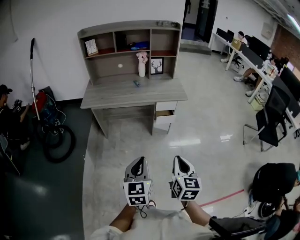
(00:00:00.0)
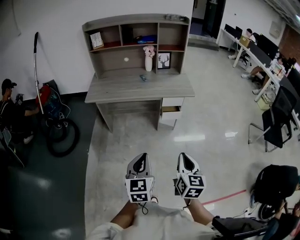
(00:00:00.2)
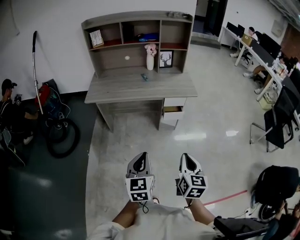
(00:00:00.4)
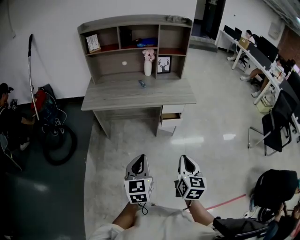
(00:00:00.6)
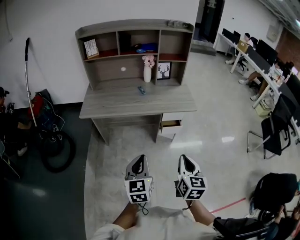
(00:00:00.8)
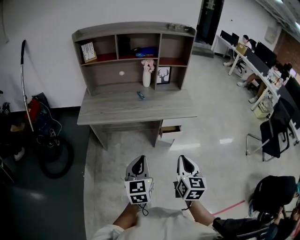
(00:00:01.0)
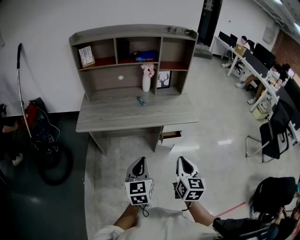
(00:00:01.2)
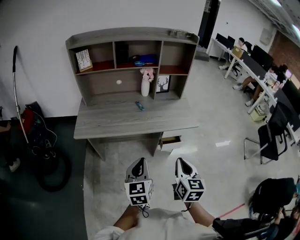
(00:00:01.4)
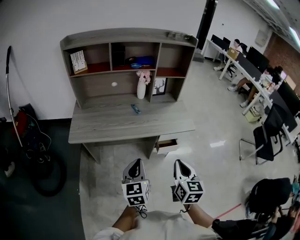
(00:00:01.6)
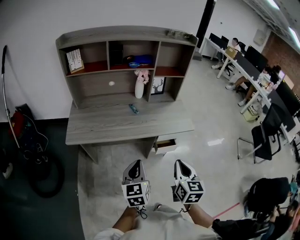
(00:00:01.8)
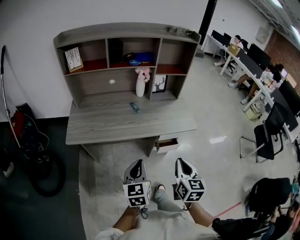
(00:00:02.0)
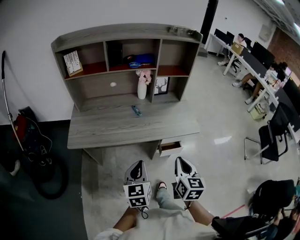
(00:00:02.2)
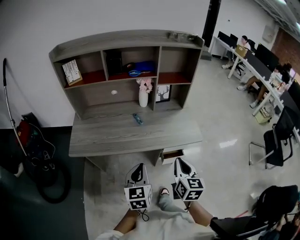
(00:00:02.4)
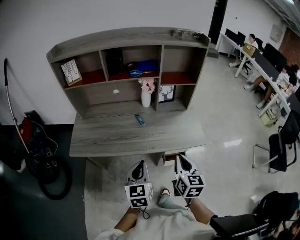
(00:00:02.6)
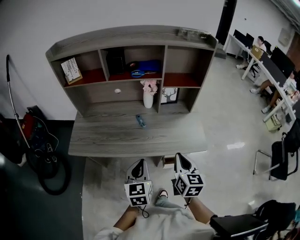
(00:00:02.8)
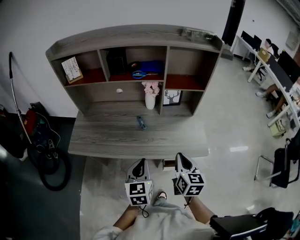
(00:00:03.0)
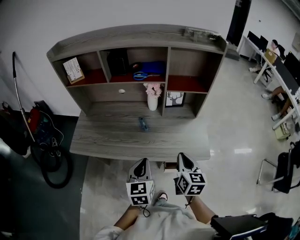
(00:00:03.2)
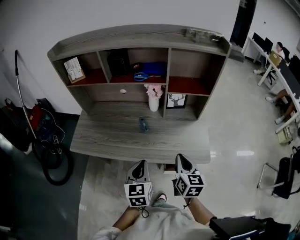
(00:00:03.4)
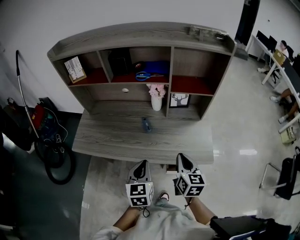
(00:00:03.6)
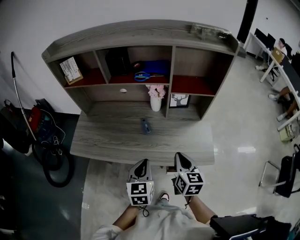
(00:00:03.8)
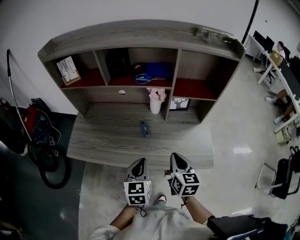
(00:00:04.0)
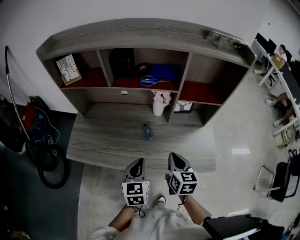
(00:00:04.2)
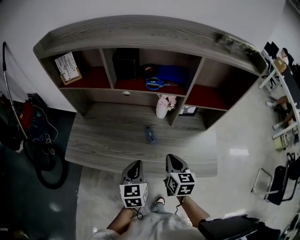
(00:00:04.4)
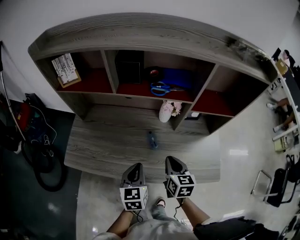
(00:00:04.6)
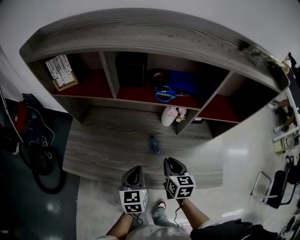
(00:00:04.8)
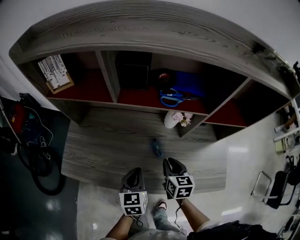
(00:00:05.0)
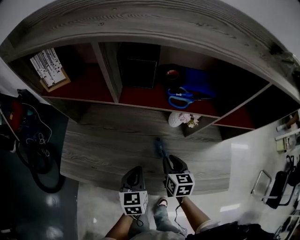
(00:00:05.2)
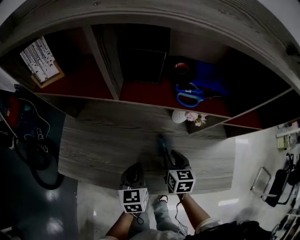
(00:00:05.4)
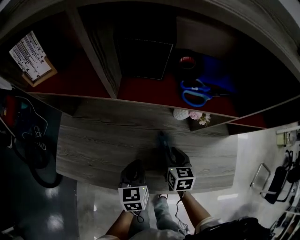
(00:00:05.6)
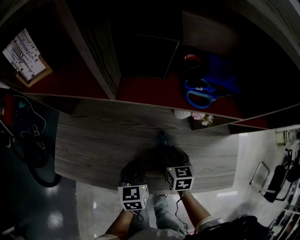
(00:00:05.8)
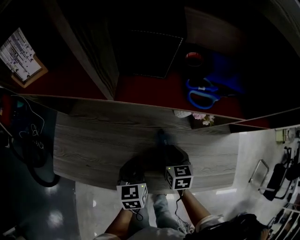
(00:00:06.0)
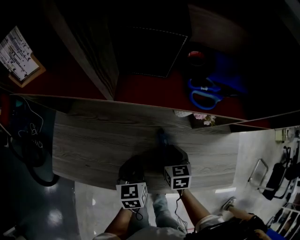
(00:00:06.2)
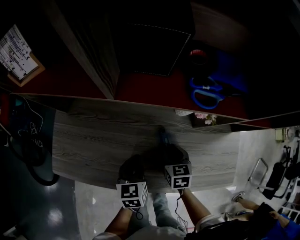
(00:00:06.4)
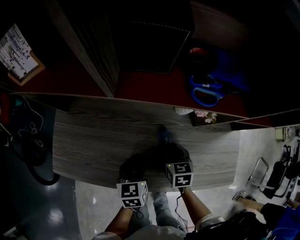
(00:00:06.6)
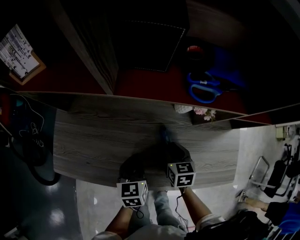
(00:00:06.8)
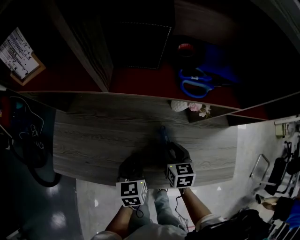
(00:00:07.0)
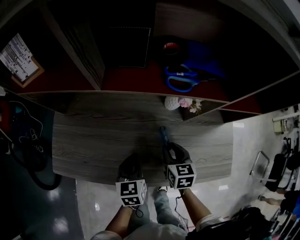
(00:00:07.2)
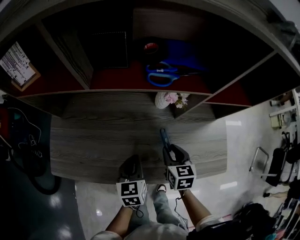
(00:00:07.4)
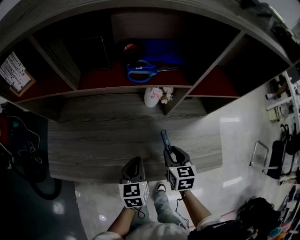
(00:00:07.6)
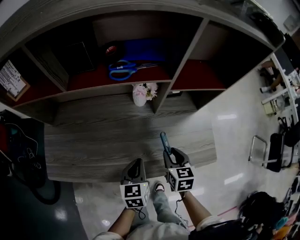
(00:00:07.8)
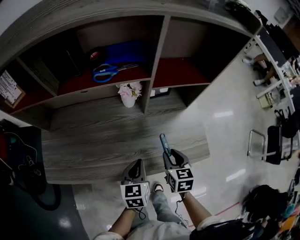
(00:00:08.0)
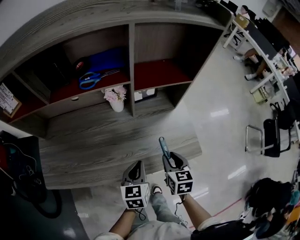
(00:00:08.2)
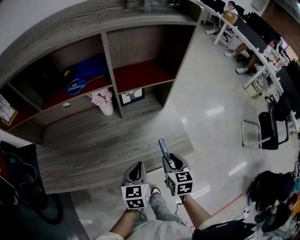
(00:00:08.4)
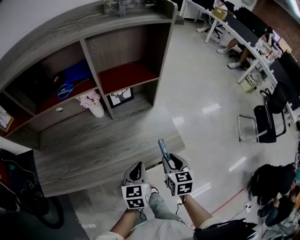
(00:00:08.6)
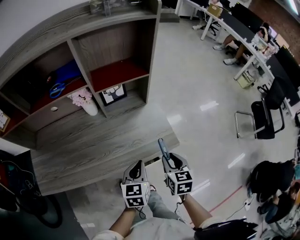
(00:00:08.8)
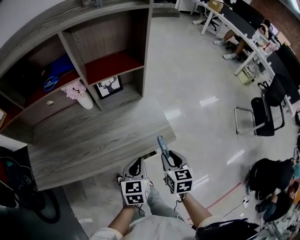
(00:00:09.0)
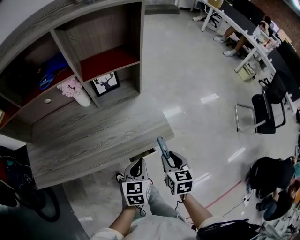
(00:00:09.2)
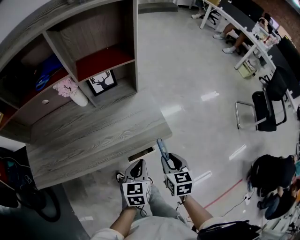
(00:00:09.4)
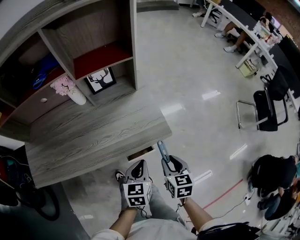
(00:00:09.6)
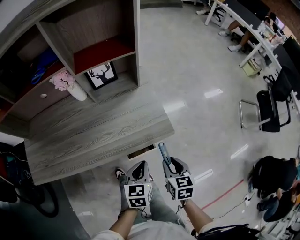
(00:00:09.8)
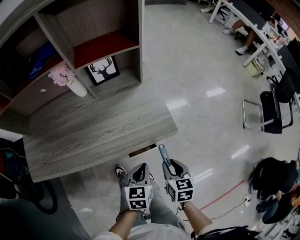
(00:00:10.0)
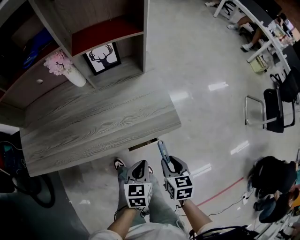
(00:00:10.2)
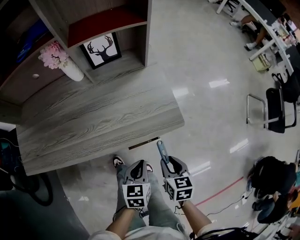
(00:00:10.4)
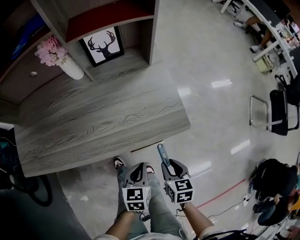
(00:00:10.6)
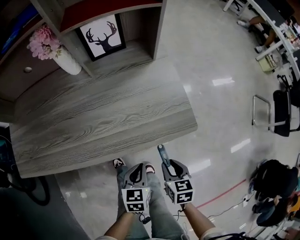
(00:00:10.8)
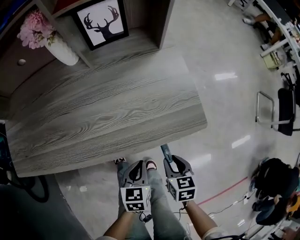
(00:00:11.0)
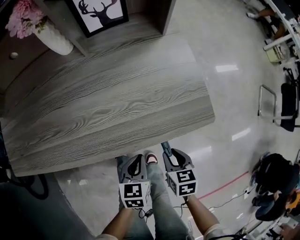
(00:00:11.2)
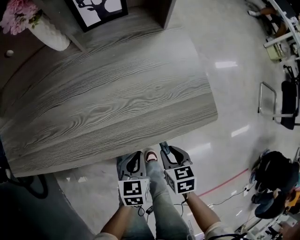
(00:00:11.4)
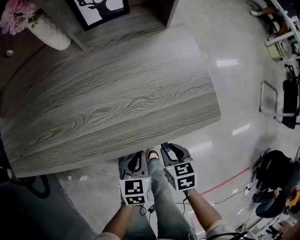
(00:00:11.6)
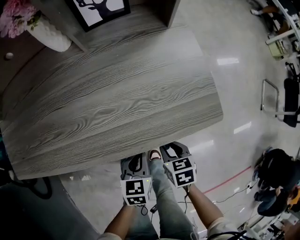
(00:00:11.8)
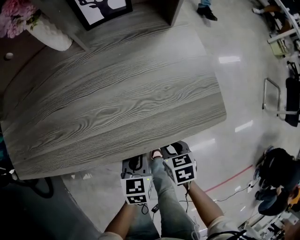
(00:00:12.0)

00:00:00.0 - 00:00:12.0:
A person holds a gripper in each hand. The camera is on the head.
00:00:00.0 - 00:00:01.6: The grippers both shift forward by approximately 30 cm.
00:00:01.6 - 00:00:03.0: The grippers both shift forward by roughly 25 cm.
00:00:03.0 - 00:00:04.4: The right gripper is displaced forward, to the left and downward by about 20 cm. Meanwhile the left gripper travels forward and to the left by roughly 15 cm.
00:00:04.4 - 00:00:06.0: The right gripper goes about 20 cm downward and forward, and opens its fingers. The left gripper travels downward, forward and to the left by some 20 cm.
00:00:06.0 - 00:00:07.6: The left gripper travels to the right and backward by some 10 cm. Meanwhile the right gripper is displaced to the right, backward and upward by approximately 15 cm.
00:00:07.6 - 00:00:09.0: The left gripper goes approximately 30 cm to the right, and rotates approximately 20 degrees. The right gripper heads to the right and backward, covering roughly 30 cm.
00:00:09.0 - 00:00:10.4: Both grippers move downward and backward, some 15 cm.
00:00:10.4 - 00:00:12.0: Both grippers travel together downward and to the left, approximately 15 cm. The right gripper rotates about 20 degrees.

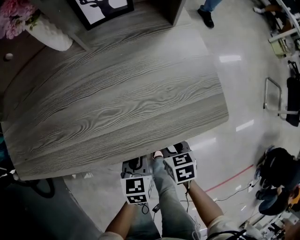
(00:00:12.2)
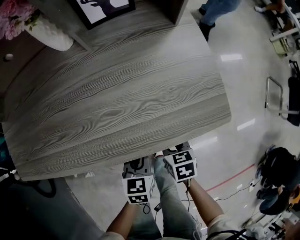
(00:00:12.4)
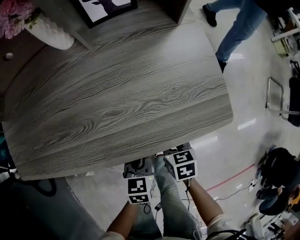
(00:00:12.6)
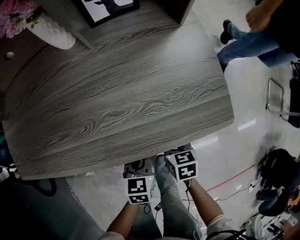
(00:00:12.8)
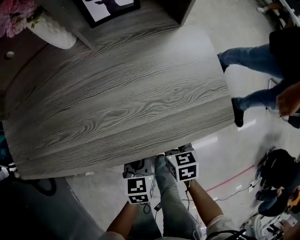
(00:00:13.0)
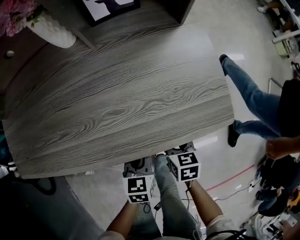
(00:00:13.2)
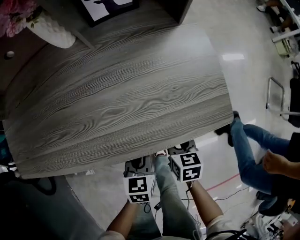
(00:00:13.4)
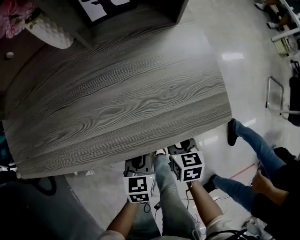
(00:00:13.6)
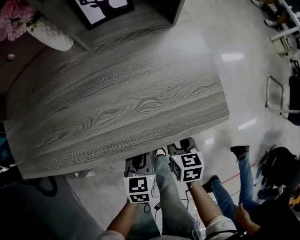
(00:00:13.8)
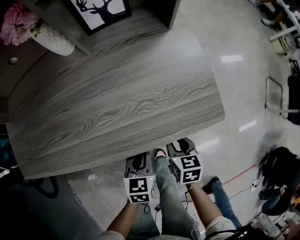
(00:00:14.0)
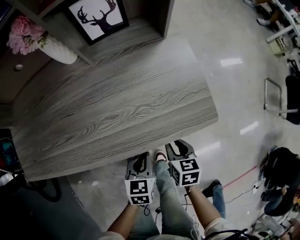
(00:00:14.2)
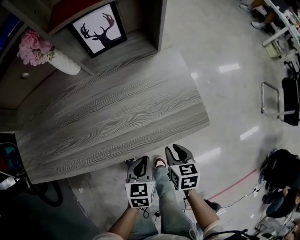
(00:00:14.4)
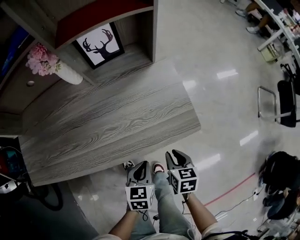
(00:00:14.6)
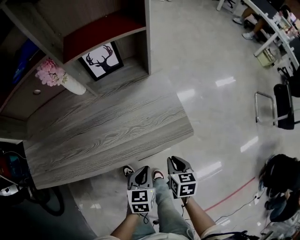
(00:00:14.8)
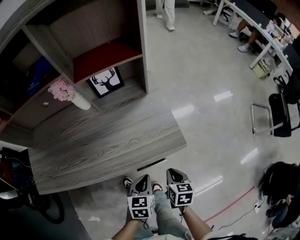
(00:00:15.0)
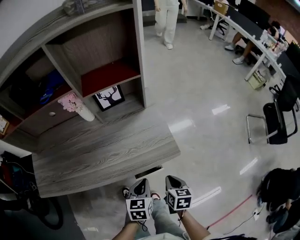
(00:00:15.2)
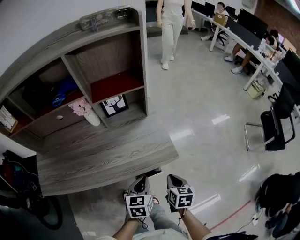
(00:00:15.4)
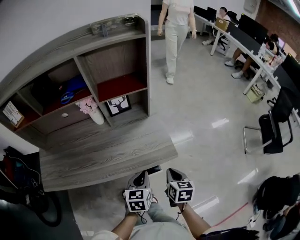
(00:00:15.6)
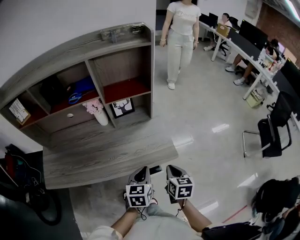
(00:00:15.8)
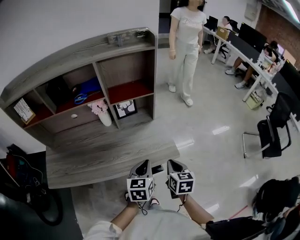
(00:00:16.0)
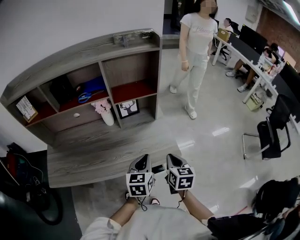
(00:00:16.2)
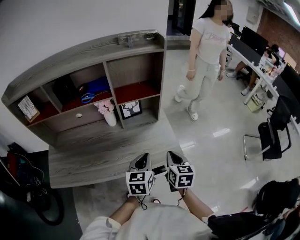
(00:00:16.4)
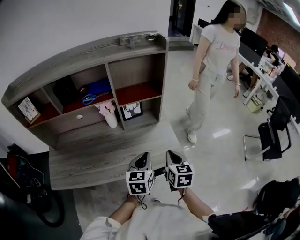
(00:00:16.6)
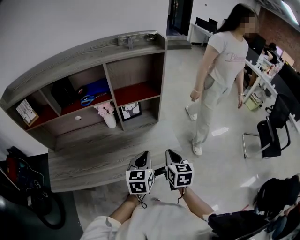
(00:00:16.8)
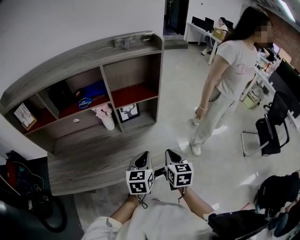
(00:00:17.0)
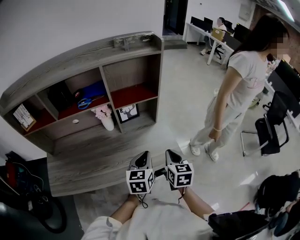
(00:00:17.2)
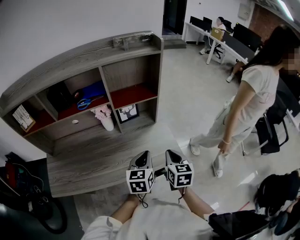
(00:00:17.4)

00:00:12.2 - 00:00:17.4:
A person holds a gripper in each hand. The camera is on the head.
00:00:12.2 - 00:00:14.0: The grippers move only a little.
00:00:14.0 - 00:00:15.6: The two grippers go roughly 25 cm upward. The right gripper closes its fingers.
00:00:15.6 - 00:00:17.4: The right gripper heads upward, to the left and forward, covering approximately 15 cm. Meanwhile the left gripper goes some 15 cm upward and forward.

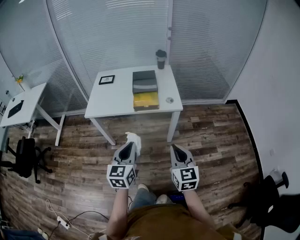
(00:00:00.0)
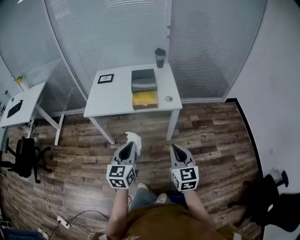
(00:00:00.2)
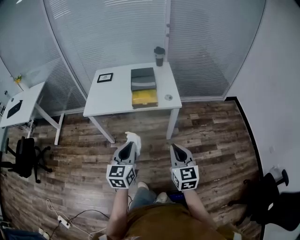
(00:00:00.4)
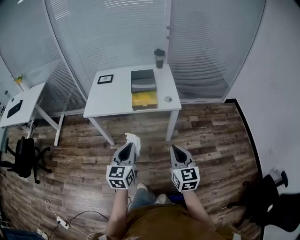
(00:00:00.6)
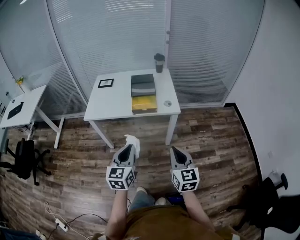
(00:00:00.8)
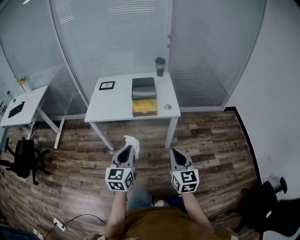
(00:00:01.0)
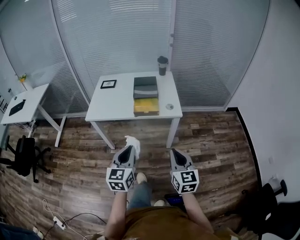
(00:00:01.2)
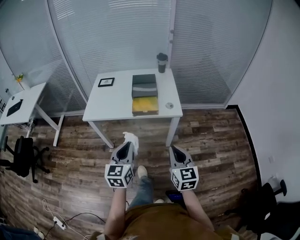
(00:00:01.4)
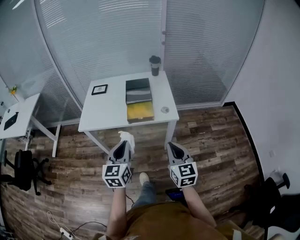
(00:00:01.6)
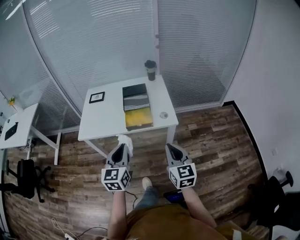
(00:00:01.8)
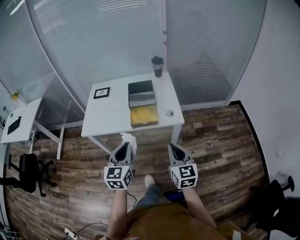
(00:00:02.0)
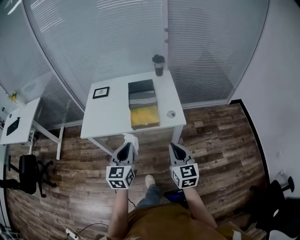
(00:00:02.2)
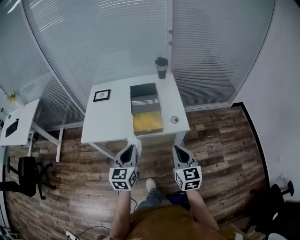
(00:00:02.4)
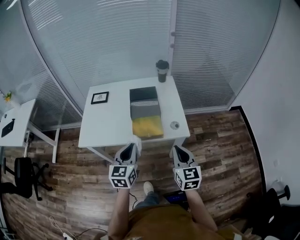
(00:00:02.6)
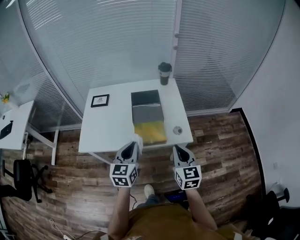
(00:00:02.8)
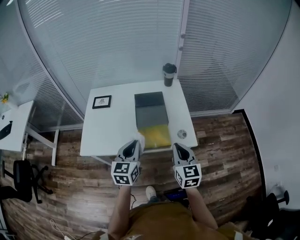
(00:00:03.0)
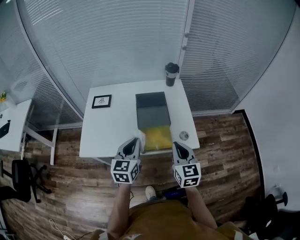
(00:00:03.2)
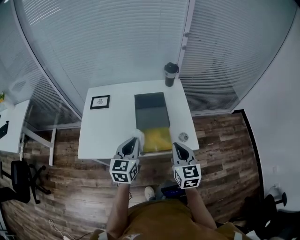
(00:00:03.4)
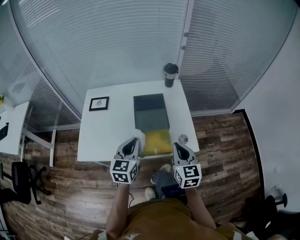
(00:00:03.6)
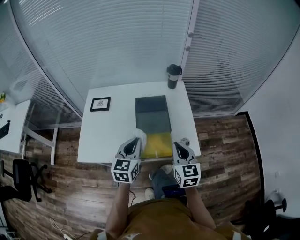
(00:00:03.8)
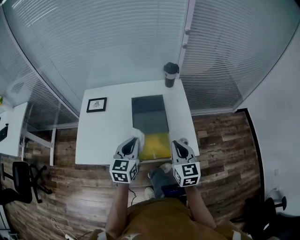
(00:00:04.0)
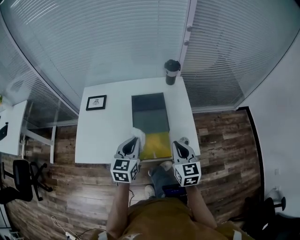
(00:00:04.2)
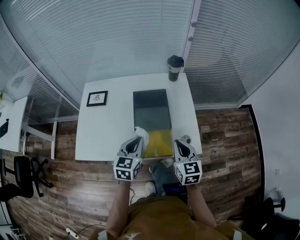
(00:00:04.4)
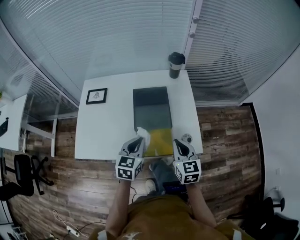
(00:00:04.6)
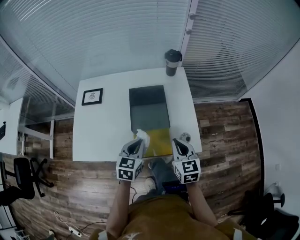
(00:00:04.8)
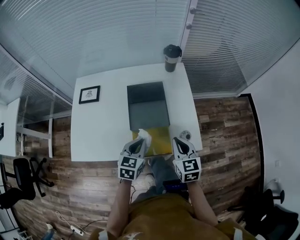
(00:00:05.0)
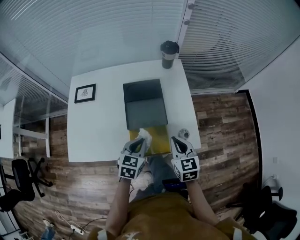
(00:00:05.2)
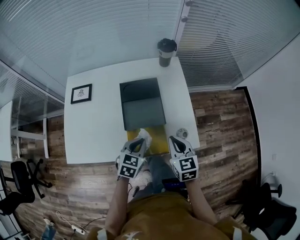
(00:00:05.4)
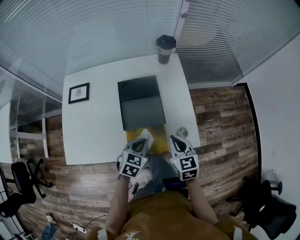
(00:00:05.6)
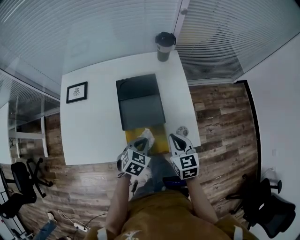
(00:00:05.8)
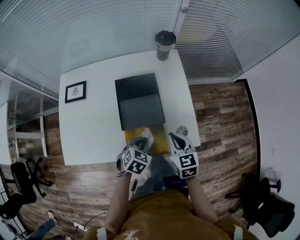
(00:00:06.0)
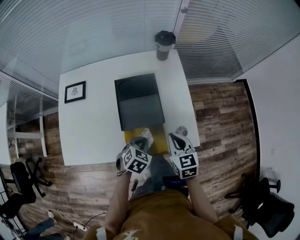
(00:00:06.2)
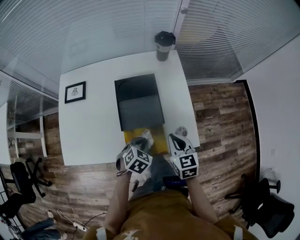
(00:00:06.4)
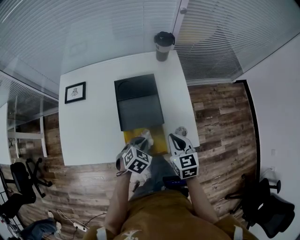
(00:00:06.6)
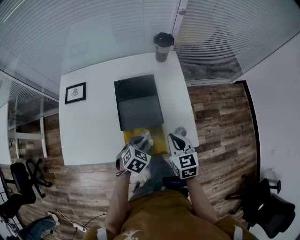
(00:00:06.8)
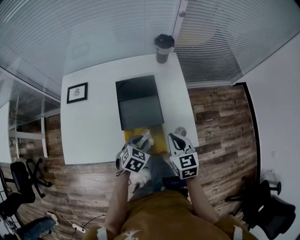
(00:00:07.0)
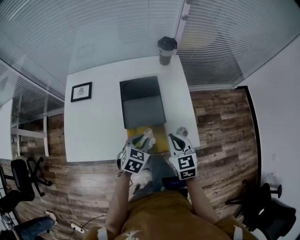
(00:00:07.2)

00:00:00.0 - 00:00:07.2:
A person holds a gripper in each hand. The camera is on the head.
00:00:00.0 - 00:00:01.4: The grippers stay close to where they were, moving slightly.
00:00:01.4 - 00:00:02.8: The grippers both shift forward by about 25 cm.
00:00:02.8 - 00:00:04.4: Both grippers move forward and downward, about 15 cm.
00:00:04.4 - 00:00:05.8: The right gripper moves downward, some 10 cm. Meanwhile the left gripper heads downward and to the right, covering approximately 15 cm, and changes its angle by approximately 30 degrees.
00:00:05.8 - 00:00:07.2: The grippers make only small movements.
